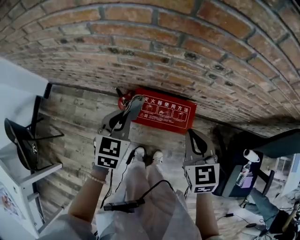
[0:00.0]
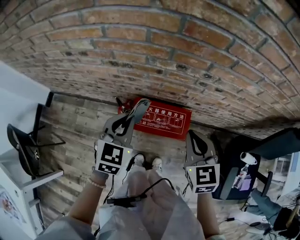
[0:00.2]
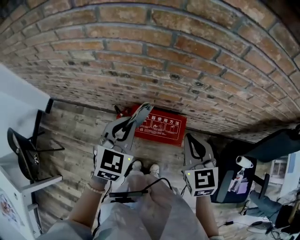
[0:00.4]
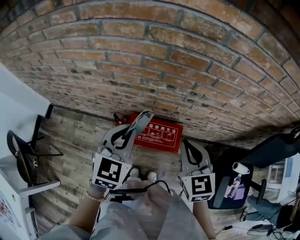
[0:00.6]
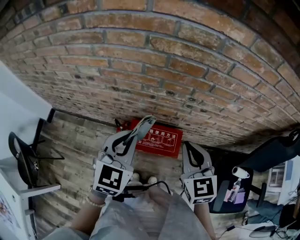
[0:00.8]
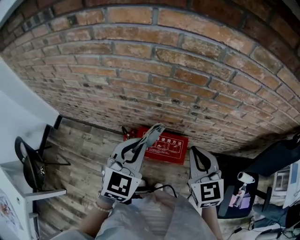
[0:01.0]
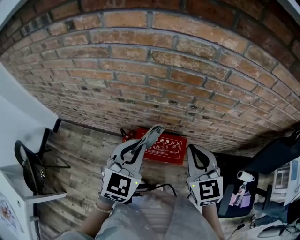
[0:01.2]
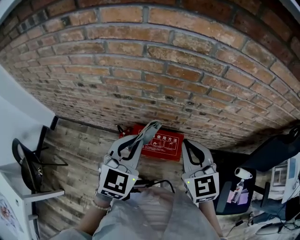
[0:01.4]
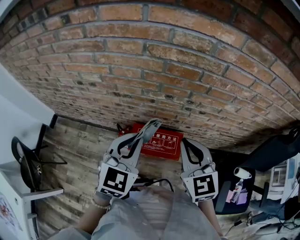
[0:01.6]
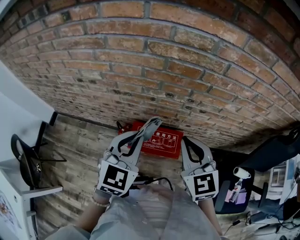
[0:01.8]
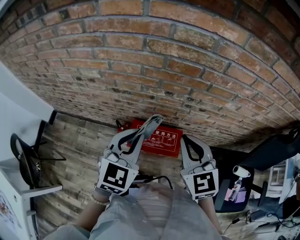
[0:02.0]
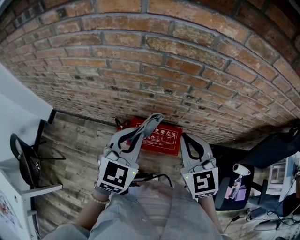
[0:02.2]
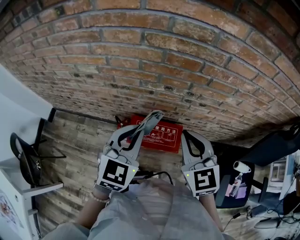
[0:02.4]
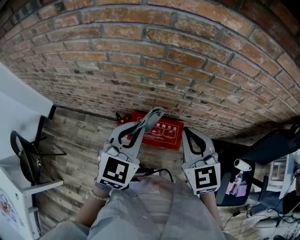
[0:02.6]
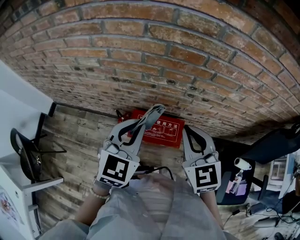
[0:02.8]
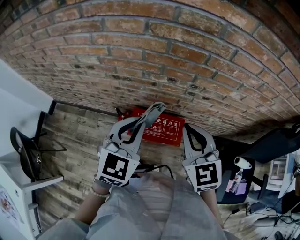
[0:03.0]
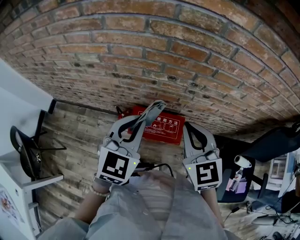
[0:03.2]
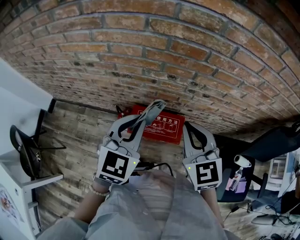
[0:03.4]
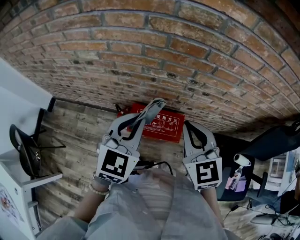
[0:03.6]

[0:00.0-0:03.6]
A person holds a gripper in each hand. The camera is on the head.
0:00.0 to 0:01.8: The grippers both shift upward by some 20 cm. The left gripper swivels roughly 20 degrees.
0:01.8 to 0:03.6: The two grippers keep their place.

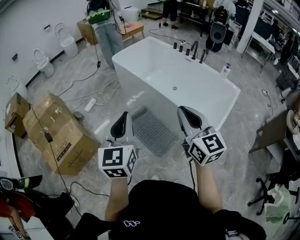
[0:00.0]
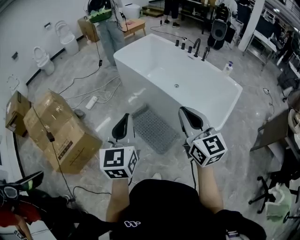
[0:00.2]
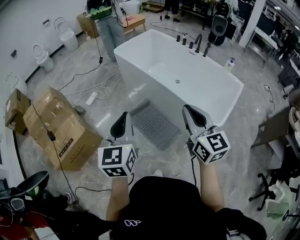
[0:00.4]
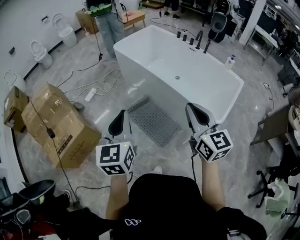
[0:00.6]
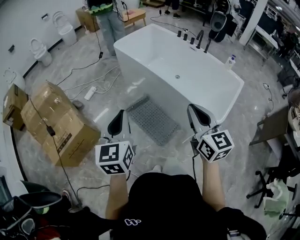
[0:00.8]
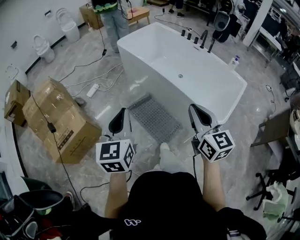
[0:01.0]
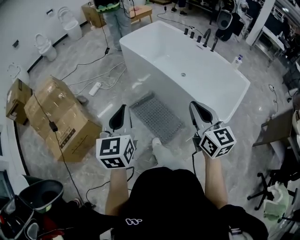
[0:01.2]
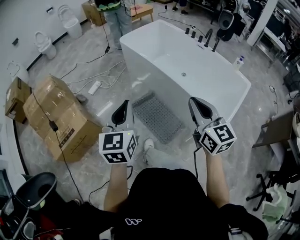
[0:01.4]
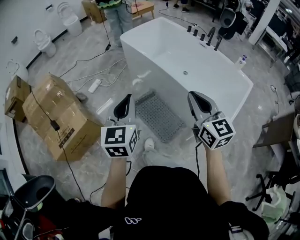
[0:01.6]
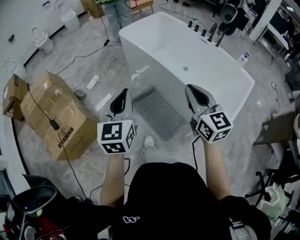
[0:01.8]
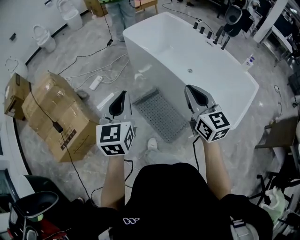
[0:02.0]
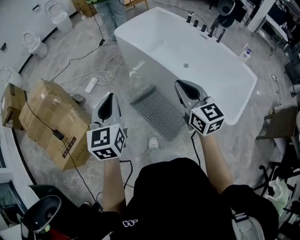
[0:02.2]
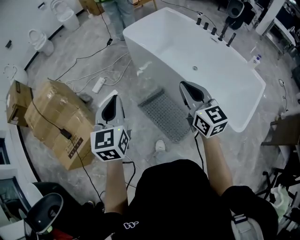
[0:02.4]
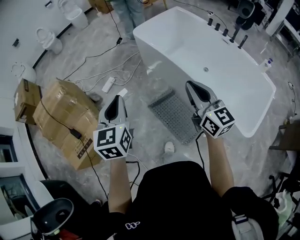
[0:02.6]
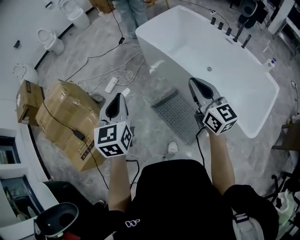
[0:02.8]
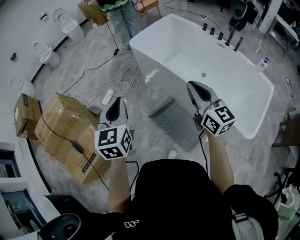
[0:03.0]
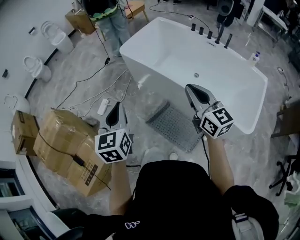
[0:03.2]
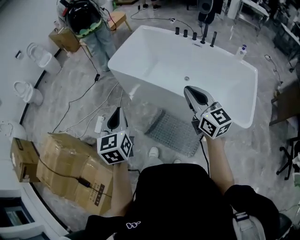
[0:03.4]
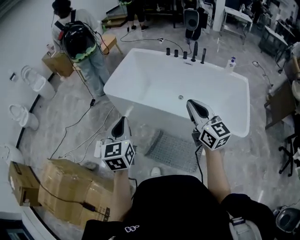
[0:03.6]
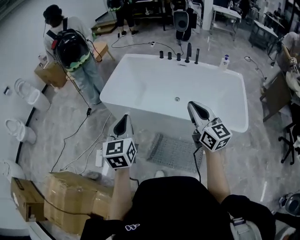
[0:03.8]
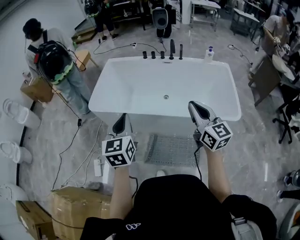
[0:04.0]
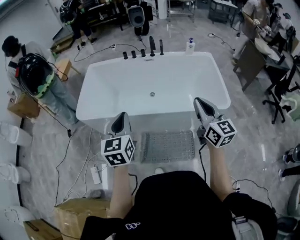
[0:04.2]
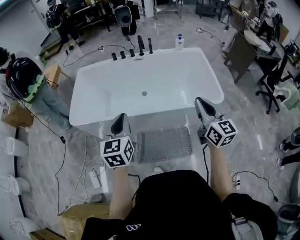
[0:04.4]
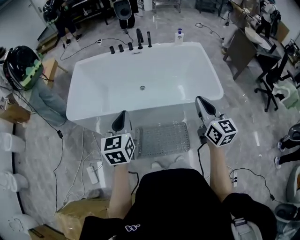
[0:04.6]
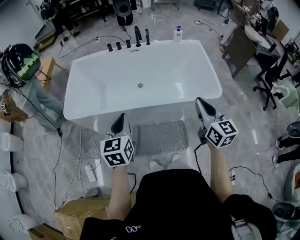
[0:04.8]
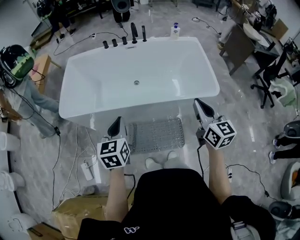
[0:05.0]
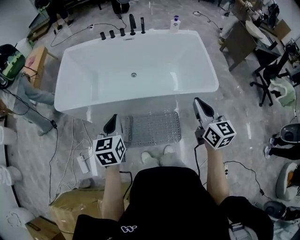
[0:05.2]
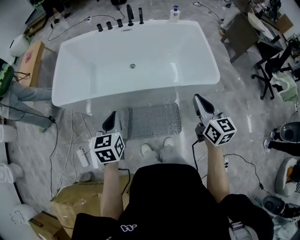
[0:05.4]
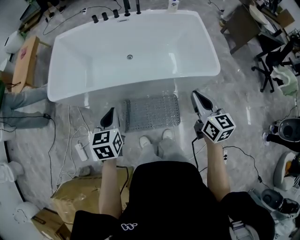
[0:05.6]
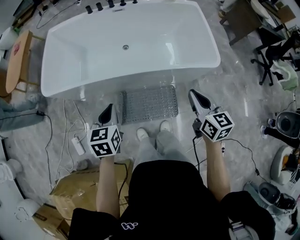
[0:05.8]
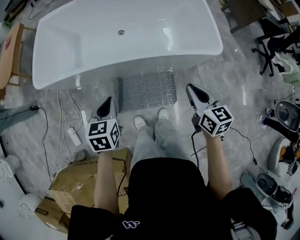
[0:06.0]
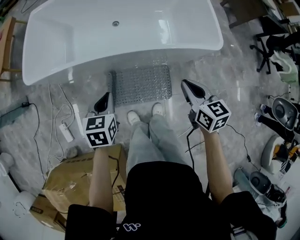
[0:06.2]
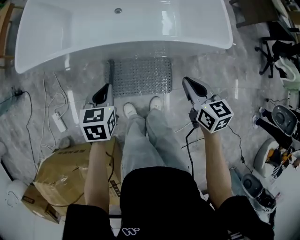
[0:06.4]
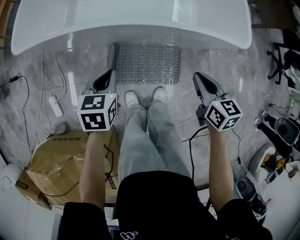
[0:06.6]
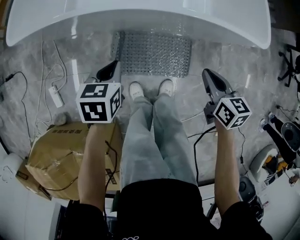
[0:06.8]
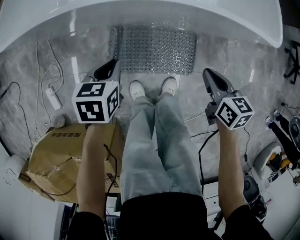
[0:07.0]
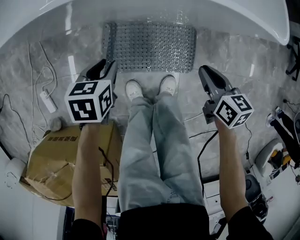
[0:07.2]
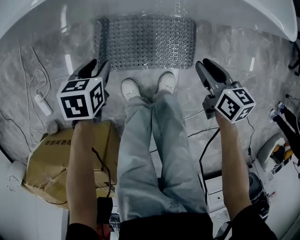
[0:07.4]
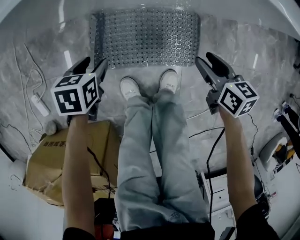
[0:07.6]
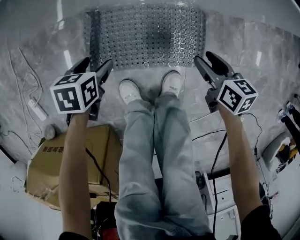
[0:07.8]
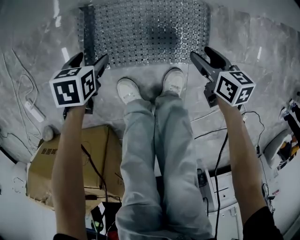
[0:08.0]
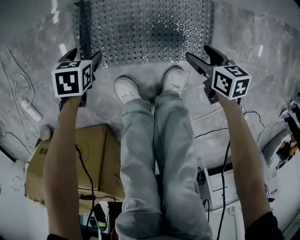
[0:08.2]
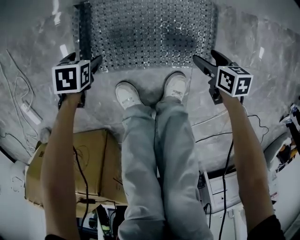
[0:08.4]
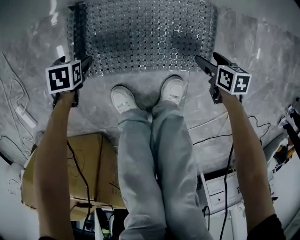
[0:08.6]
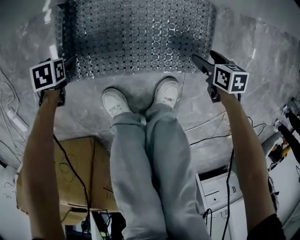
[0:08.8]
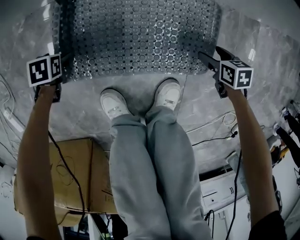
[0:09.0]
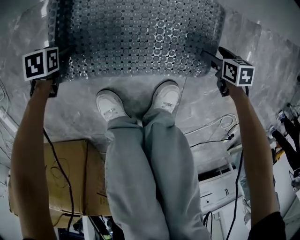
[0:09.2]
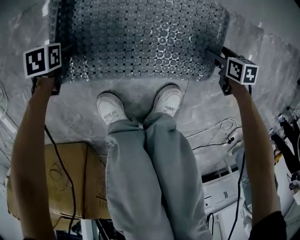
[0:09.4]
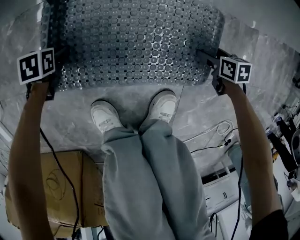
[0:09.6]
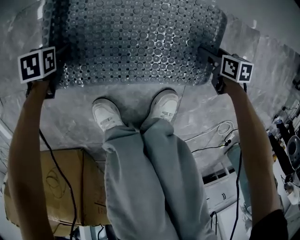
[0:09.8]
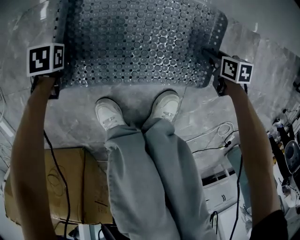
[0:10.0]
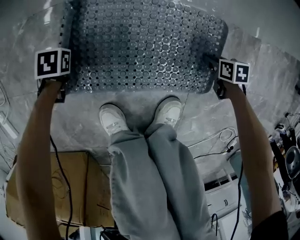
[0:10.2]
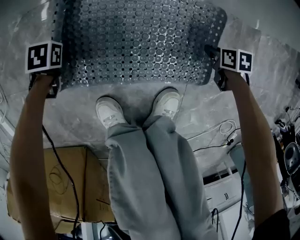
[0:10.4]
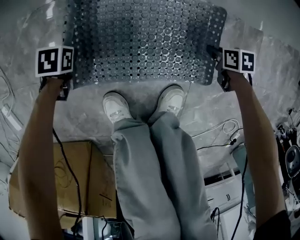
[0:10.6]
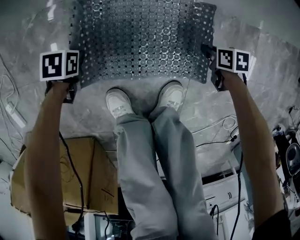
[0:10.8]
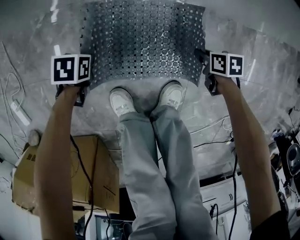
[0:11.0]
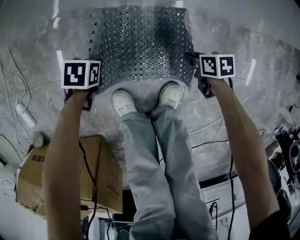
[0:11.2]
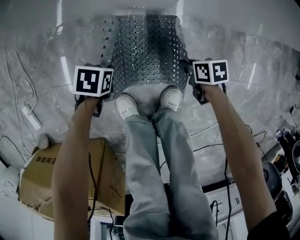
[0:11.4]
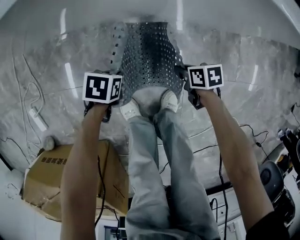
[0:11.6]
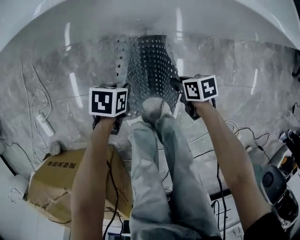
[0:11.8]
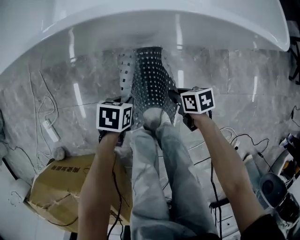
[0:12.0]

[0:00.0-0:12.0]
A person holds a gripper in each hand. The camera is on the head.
0:00.0 to 0:01.6: The left gripper is displaced forward, downward and to the left by approximately 10 cm. The right gripper travels forward and downward by approximately 10 cm.
0:01.6 to 0:03.0: The left gripper goes about 25 cm forward and to the left. The right gripper goes approximately 25 cm forward.
0:03.0 to 0:04.4: The left gripper ends up roughly 25 cm from where it was, and swivels about 50 degrees. Meanwhile the right gripper ends up some 15 cm from where it was, and swivels approximately 60 degrees.
0:04.4 to 0:06.0: Both grippers move downward, some 20 cm. The right gripper swivels some 30 degrees. Meanwhile the left gripper turns by about 30 degrees.
0:06.0 to 0:07.6: Both grippers travel together downward, approximately 50 cm. The left gripper rotates roughly 30 degrees, and opens up; the right gripper swivels some 30 degrees, and opens up.
0:07.6 to 0:09.0: The grippers both shift downward by about 35 cm. The right gripper changes its angle by approximately 30 degrees, and opens its fingers. The left gripper opens its fingers.
0:09.0 to 0:10.4: The right gripper shifts by some 5 cm, and closes up. The left gripper closes.
0:10.4 to 0:12.0: Both grippers move upward, about 30 cm. The right gripper changes its angle by approximately 20 degrees.

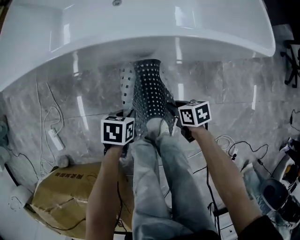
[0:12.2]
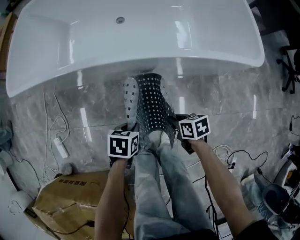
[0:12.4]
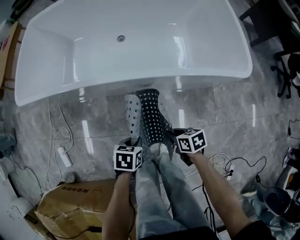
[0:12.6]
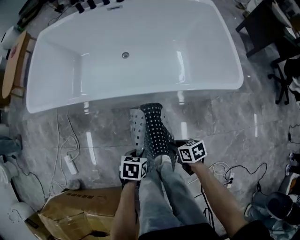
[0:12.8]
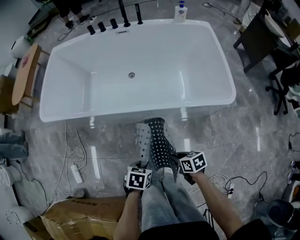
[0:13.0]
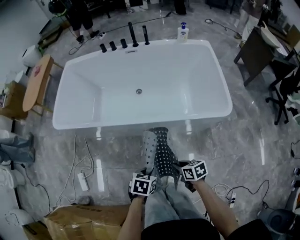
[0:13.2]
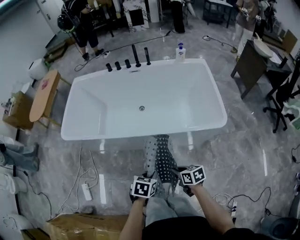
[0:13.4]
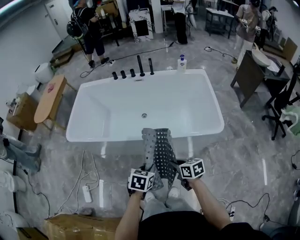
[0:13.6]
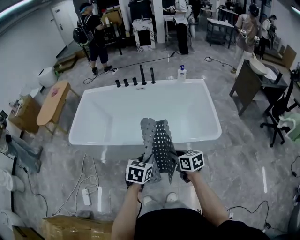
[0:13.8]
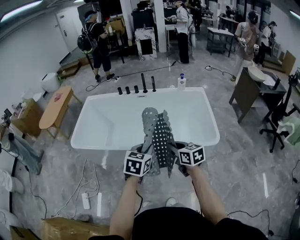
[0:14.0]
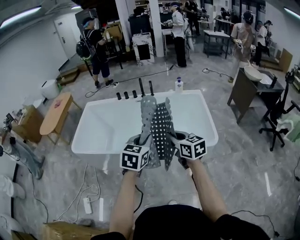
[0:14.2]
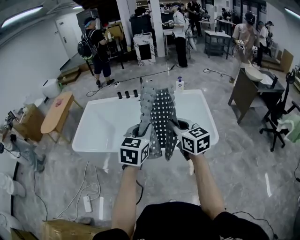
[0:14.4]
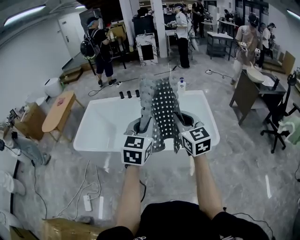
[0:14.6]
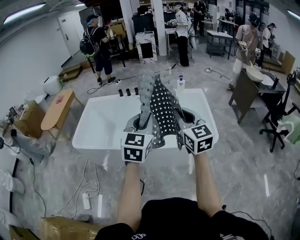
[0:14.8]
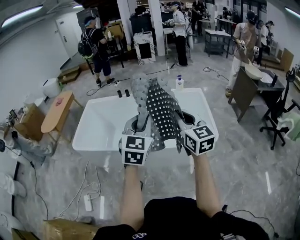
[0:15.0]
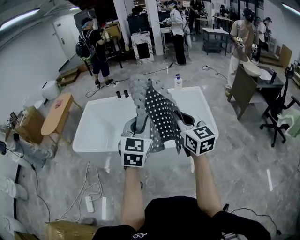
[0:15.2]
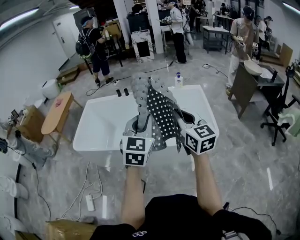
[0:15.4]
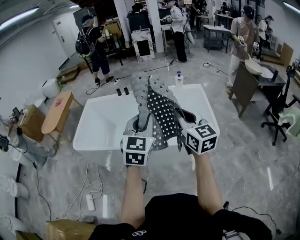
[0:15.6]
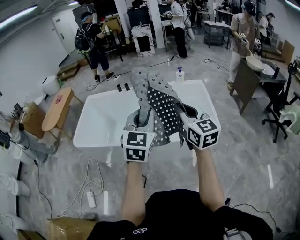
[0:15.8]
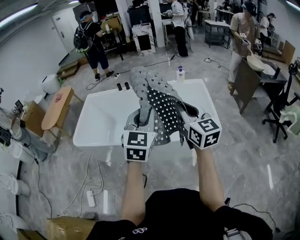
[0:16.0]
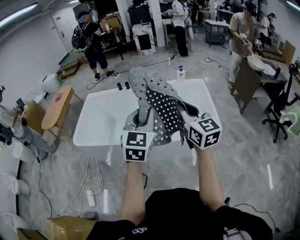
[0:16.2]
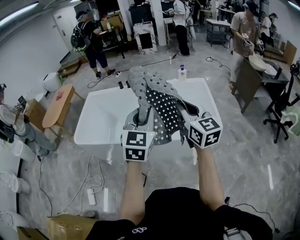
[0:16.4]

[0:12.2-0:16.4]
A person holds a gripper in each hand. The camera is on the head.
0:12.2 to 0:13.6: Both grippers travel together upward, approximately 40 cm. The right gripper turns by about 30 degrees; the left gripper turns by some 30 degrees.
0:13.6 to 0:15.0: Both grippers travel together upward, approximately 35 cm. The left gripper points its fingers approximately 40 degrees further upward; the right gripper points its fingers about 30 degrees further upward.
0:15.0 to 0:16.4: The grippers stay close to where they were, moving slightly.

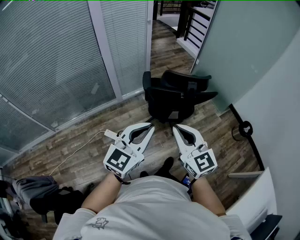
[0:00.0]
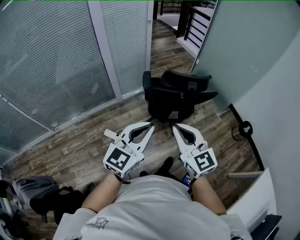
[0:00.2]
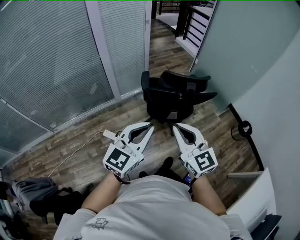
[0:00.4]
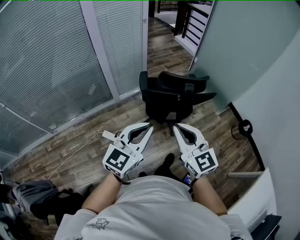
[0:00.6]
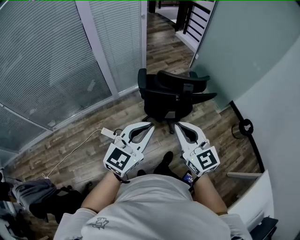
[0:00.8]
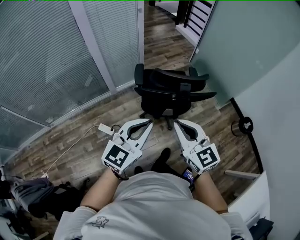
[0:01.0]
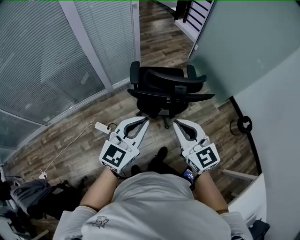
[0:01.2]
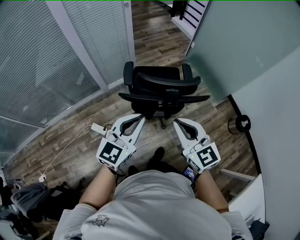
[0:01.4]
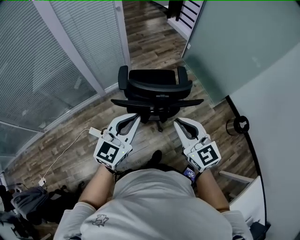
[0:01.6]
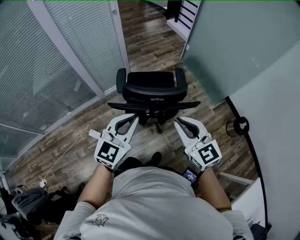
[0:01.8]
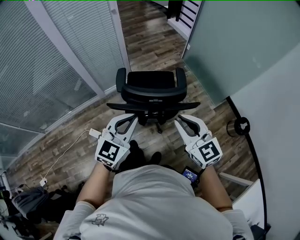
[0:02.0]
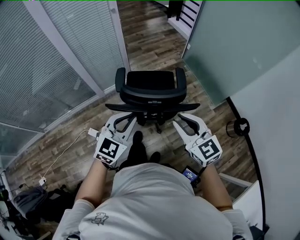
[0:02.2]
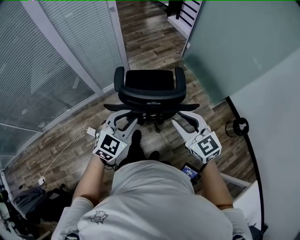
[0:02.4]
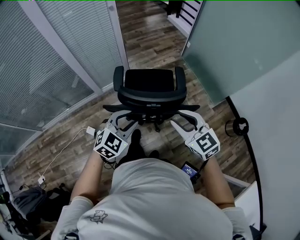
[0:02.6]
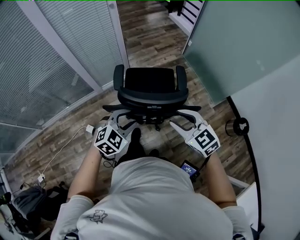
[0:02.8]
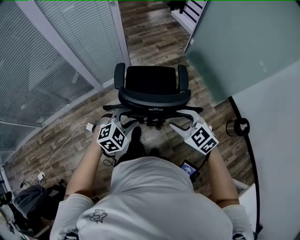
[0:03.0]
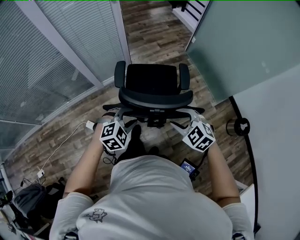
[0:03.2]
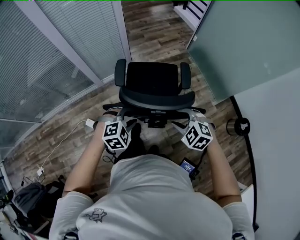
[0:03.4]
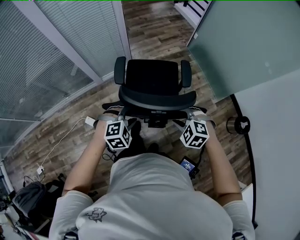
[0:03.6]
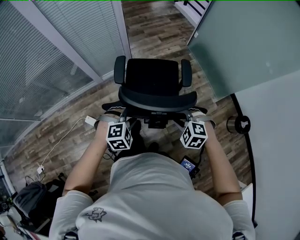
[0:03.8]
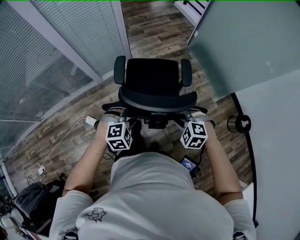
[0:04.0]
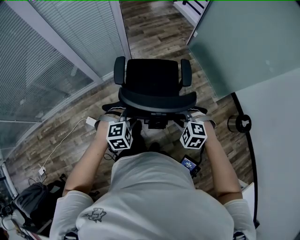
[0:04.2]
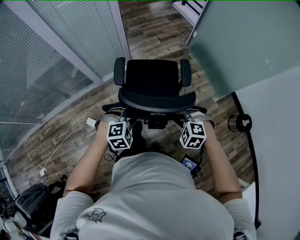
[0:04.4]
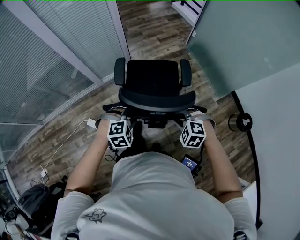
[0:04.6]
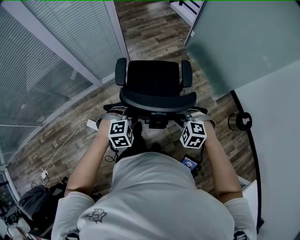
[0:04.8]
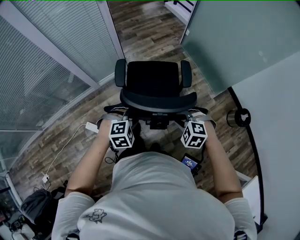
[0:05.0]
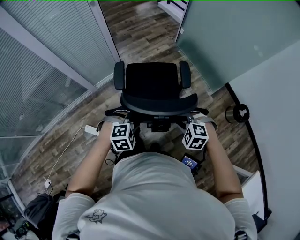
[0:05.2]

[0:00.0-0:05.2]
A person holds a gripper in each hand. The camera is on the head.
0:00.0 to 0:01.8: The two grippers go approximately 35 cm forward and to the right.
0:01.8 to 0:03.4: The grippers both shift downward and forward by about 20 cm. The right gripper tips its fingers downward by some 40 degrees, and opens up, while the left gripper tilts its fingers roughly 40 degrees downward, and opens up.
0:03.4 to 0:05.2: The two grippers go roughly 5 cm to the right. The right gripper closes.
